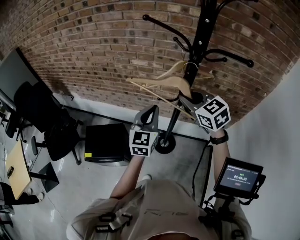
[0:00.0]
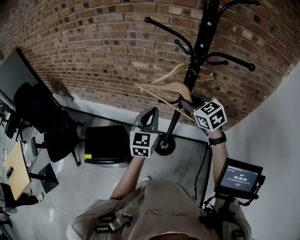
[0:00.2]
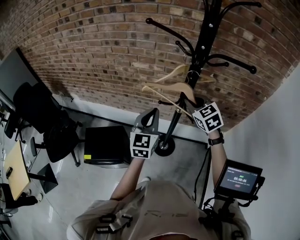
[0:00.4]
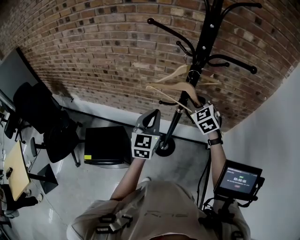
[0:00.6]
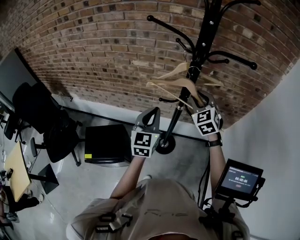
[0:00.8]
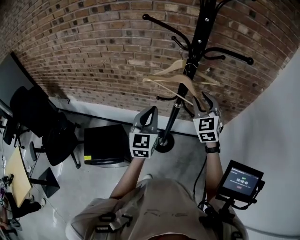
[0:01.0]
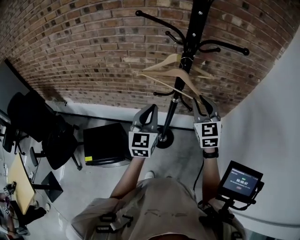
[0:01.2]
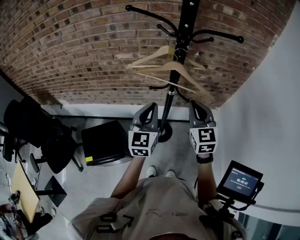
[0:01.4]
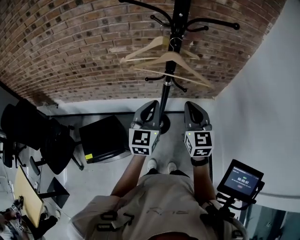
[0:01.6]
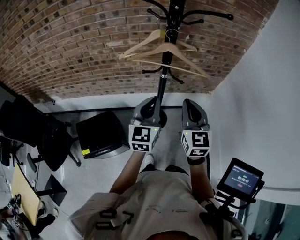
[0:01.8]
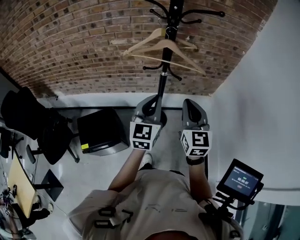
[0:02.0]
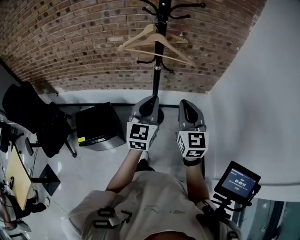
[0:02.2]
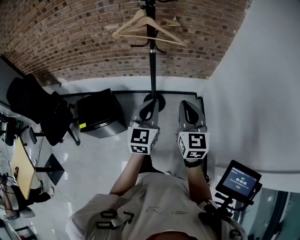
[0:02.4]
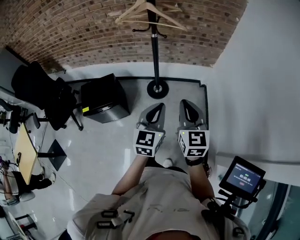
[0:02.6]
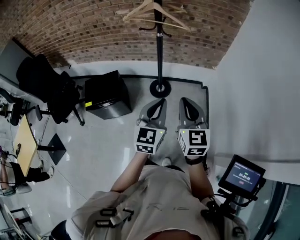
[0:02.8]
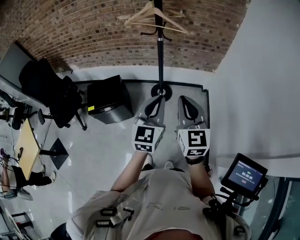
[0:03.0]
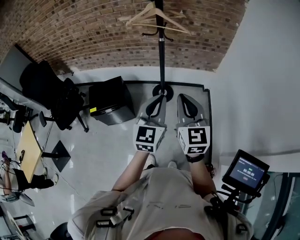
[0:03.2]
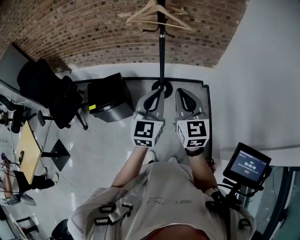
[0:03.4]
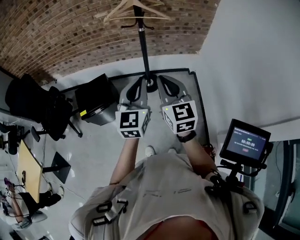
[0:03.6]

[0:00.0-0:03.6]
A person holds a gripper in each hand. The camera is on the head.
0:00.0 to 0:01.8: The right gripper shifts by roughly 20 cm, changes its angle by some 50 degrees, and opens, then closes again, while the left gripper moves about 10 cm.
0:01.8 to 0:03.6: Both grippers travel together backward, roughly 30 cm.

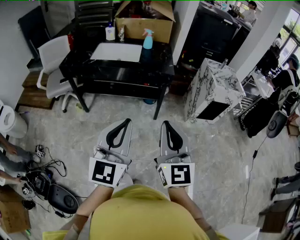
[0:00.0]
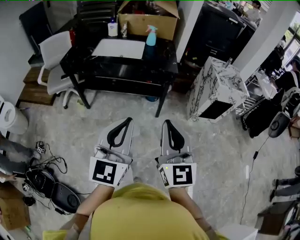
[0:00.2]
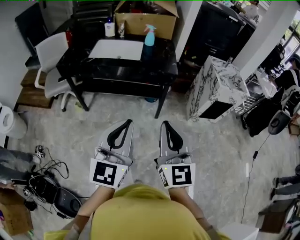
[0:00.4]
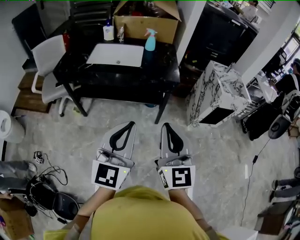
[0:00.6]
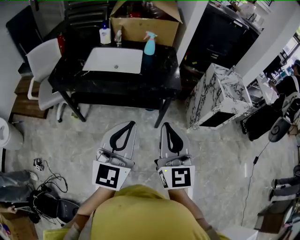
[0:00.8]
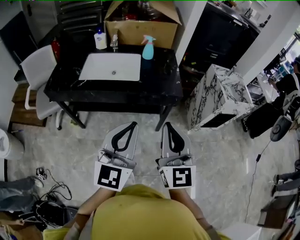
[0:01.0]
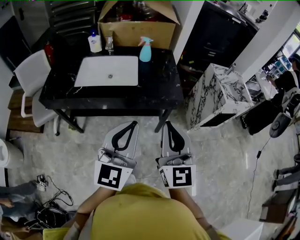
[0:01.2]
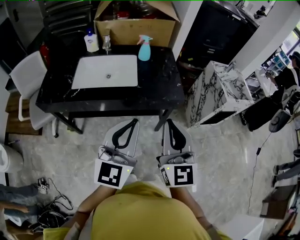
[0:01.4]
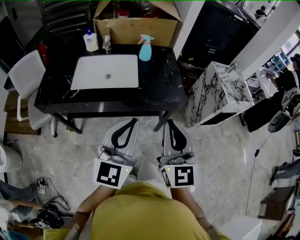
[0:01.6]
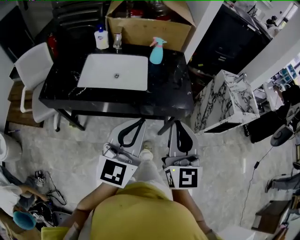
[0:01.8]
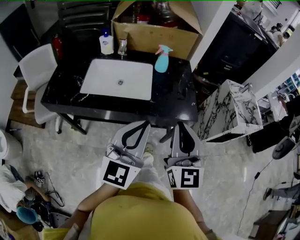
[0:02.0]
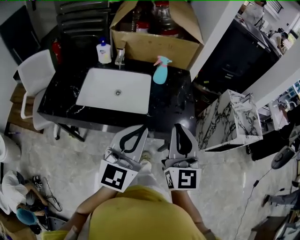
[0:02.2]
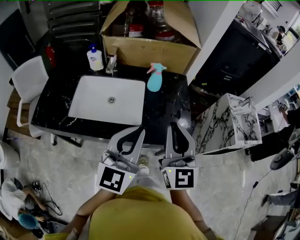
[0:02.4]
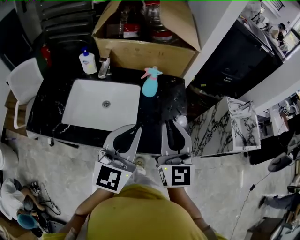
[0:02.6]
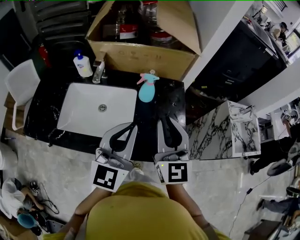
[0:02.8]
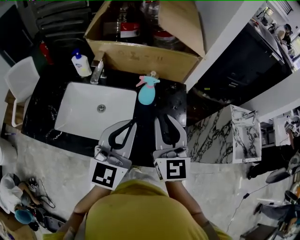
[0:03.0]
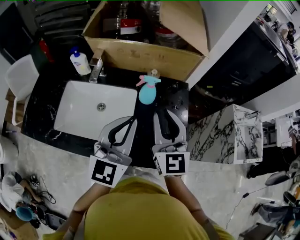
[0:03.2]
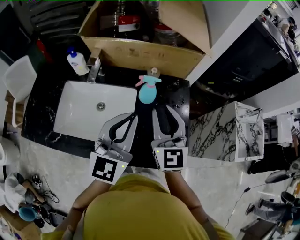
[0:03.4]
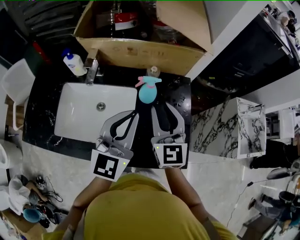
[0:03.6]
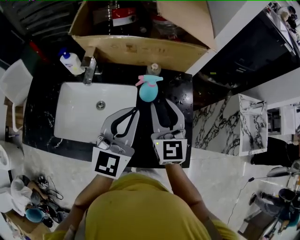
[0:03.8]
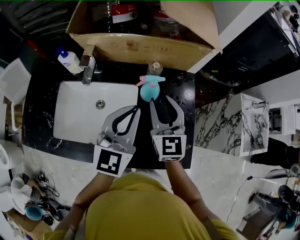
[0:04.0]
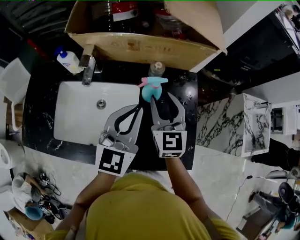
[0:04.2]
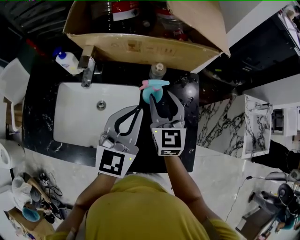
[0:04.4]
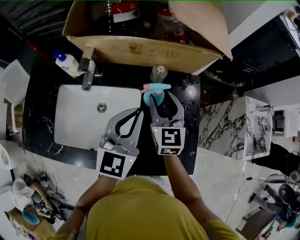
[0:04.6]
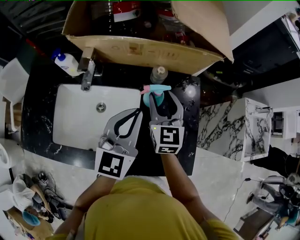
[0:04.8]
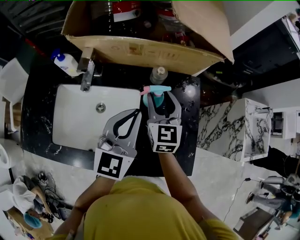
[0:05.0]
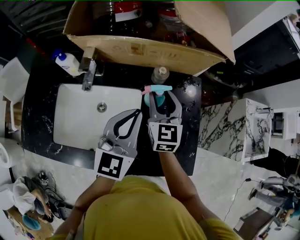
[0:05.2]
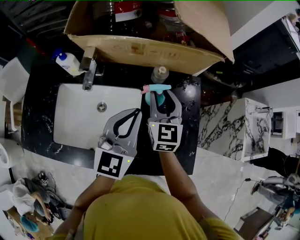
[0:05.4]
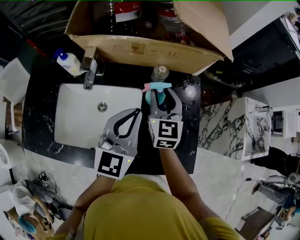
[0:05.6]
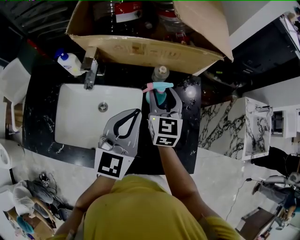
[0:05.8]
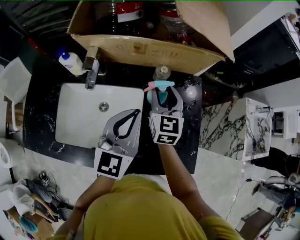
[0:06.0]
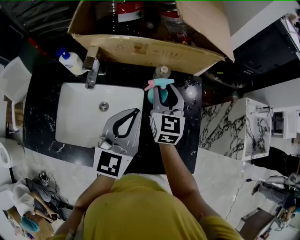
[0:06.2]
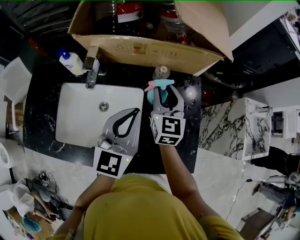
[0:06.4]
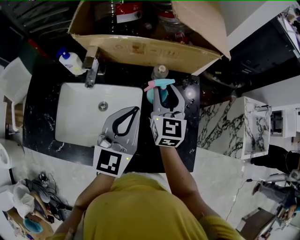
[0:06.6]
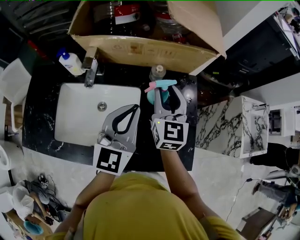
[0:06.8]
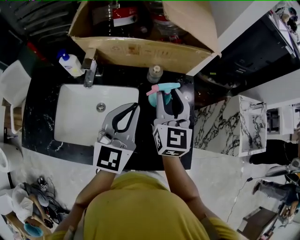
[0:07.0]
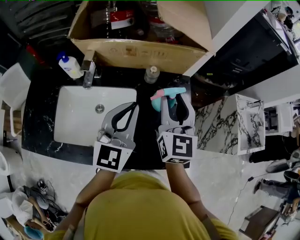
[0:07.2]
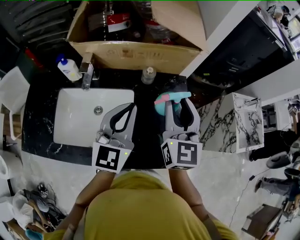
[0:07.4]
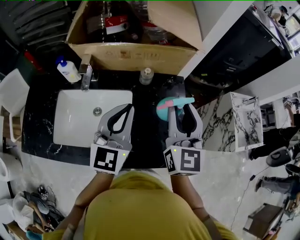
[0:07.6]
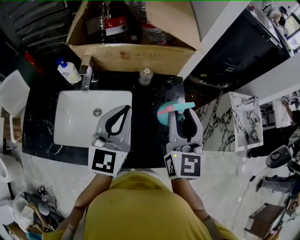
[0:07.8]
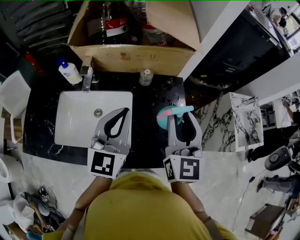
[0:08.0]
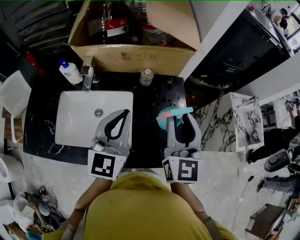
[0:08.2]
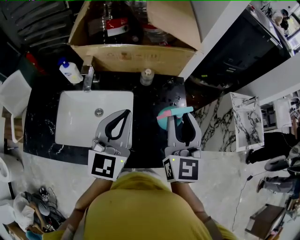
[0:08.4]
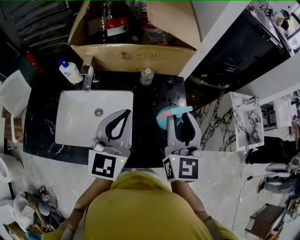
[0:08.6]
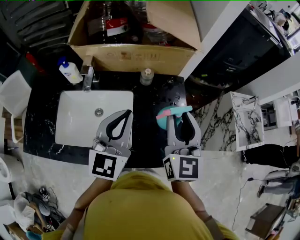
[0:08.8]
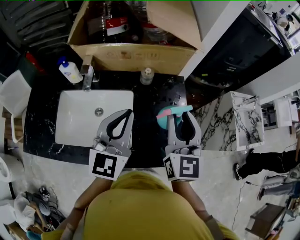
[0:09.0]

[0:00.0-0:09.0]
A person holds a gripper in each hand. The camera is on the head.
0:00.0 to 0:01.6: Both grippers travel together forward, approximately 35 cm.
0:01.6 to 0:03.0: The grippers both shift forward by approximately 35 cm.
0:03.0 to 0:04.4: The grippers both shift forward and downward by some 15 cm. The right gripper opens.
0:04.4 to 0:06.0: The grippers stay close to where they were, moving slightly.
0:06.0 to 0:07.6: The right gripper goes roughly 20 cm upward, backward and to the right. Meanwhile the left gripper moves upward, some 5 cm.
0:07.6 to 0:09.0: There are only small adjustments of the grippers.

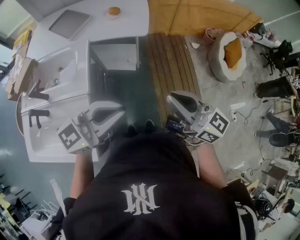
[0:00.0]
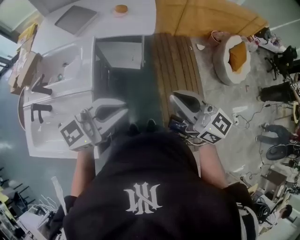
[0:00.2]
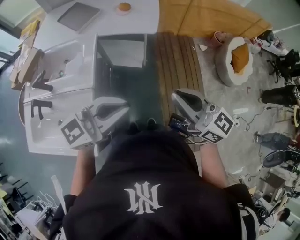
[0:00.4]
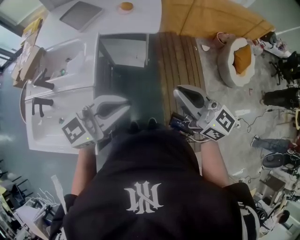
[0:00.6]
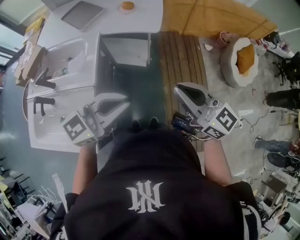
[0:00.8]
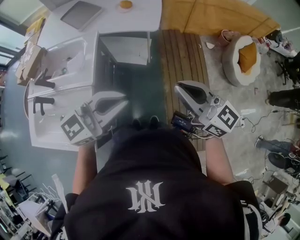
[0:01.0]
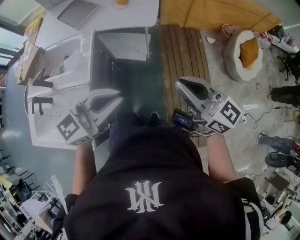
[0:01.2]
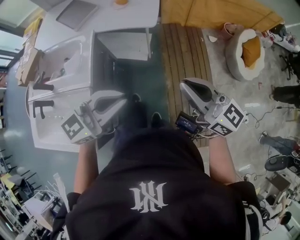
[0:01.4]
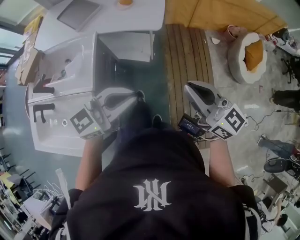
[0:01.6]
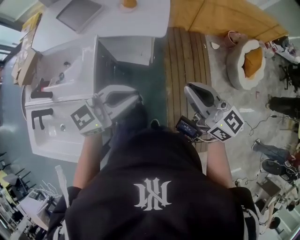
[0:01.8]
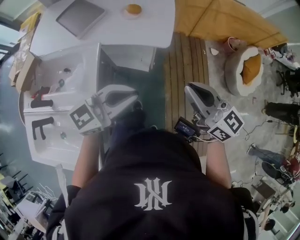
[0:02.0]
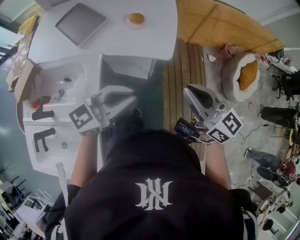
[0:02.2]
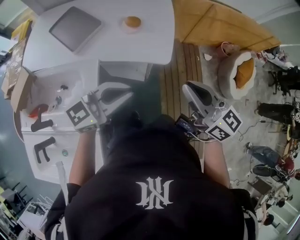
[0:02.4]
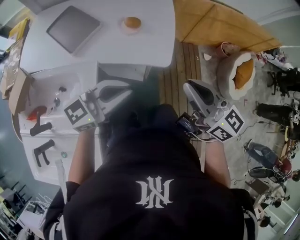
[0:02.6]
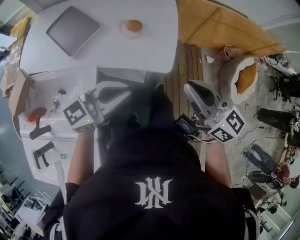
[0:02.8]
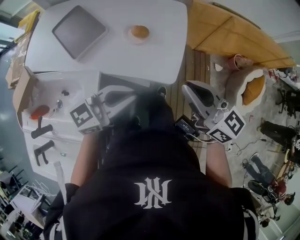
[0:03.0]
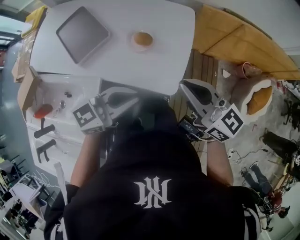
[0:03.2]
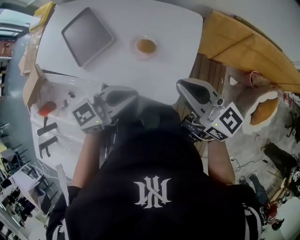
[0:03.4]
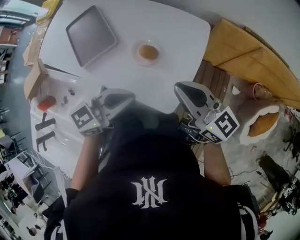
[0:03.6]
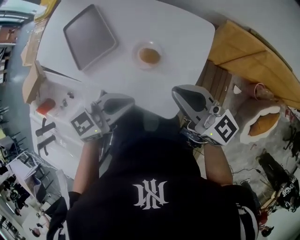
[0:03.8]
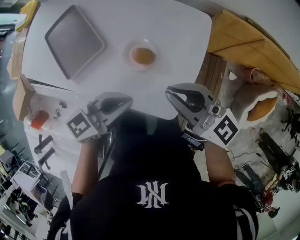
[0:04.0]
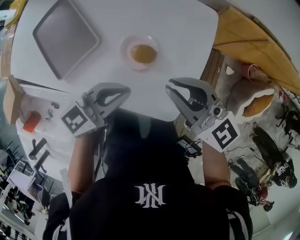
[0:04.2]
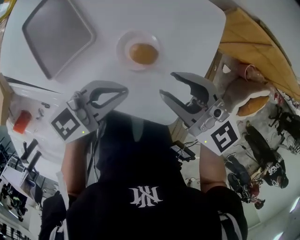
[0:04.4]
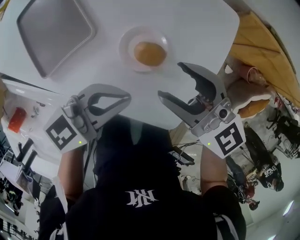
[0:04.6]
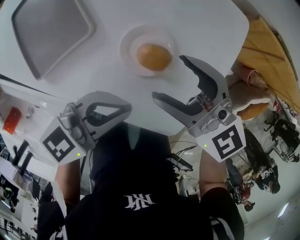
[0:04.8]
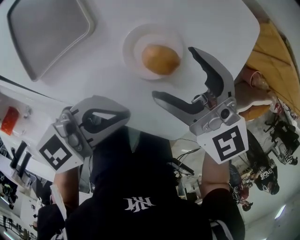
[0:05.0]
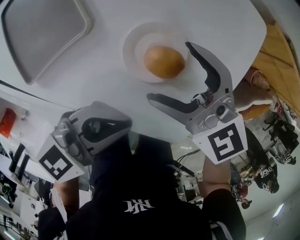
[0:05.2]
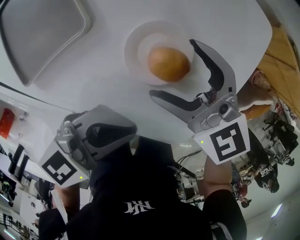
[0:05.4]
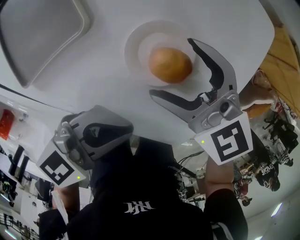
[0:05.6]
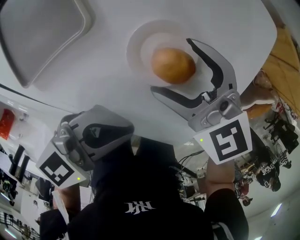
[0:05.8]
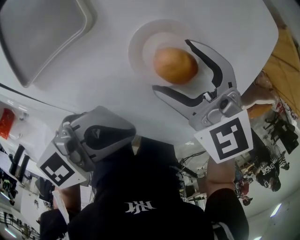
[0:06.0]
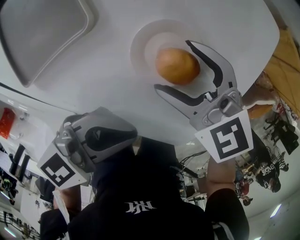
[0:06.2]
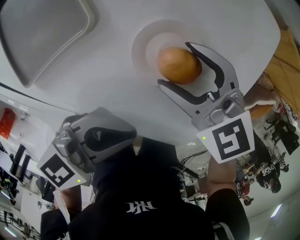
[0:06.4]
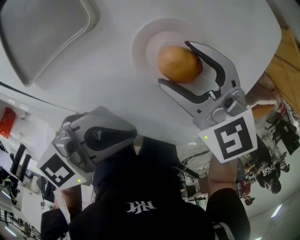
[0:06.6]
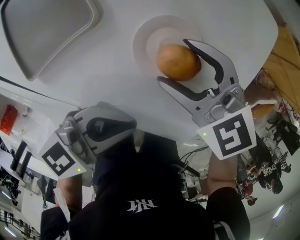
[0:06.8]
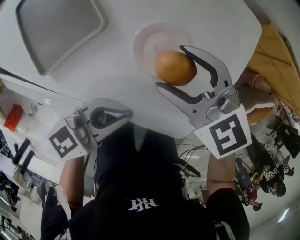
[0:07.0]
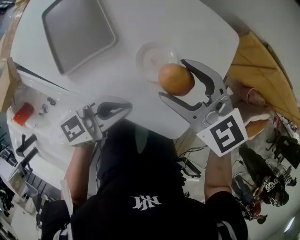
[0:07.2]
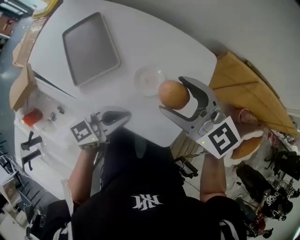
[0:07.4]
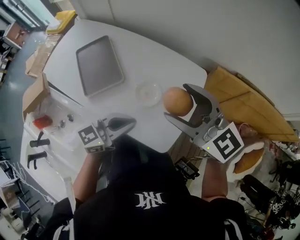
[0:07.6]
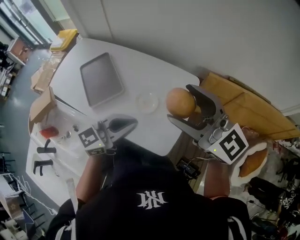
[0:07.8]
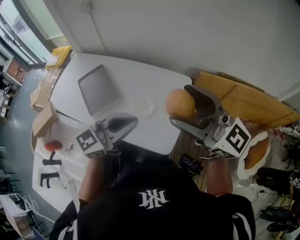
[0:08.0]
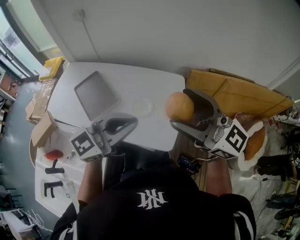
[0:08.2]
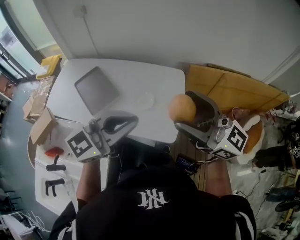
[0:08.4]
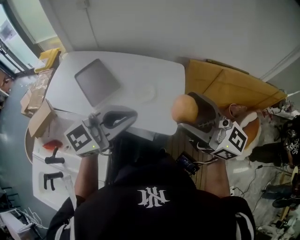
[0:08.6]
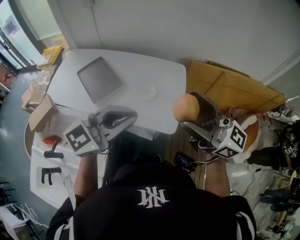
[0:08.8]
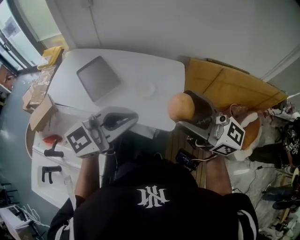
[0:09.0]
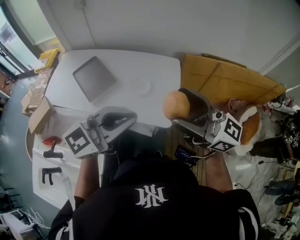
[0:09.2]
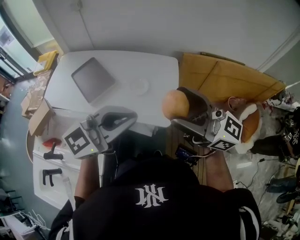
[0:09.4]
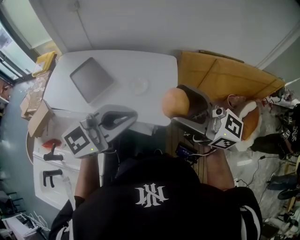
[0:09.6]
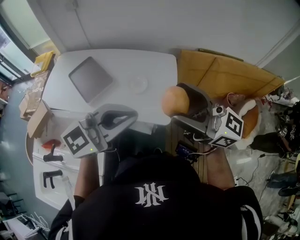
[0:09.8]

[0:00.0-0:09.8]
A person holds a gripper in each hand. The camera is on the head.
0:00.0 to 0:01.4: The left gripper moves forward, approximately 5 cm, while the right gripper moves forward and to the right, roughly 10 cm.
0:01.4 to 0:02.8: The grippers both shift forward and to the left by some 40 cm.
0:02.8 to 0:04.2: Both grippers move forward and downward, about 35 cm. The right gripper turns by some 20 degrees; the left gripper turns by some 20 degrees.
0:04.2 to 0:05.6: The left gripper goes roughly 10 cm downward; the right gripper heads downward, covering some 20 cm, changes its angle by about 30 degrees, and opens.
0:05.6 to 0:07.0: The right gripper goes about 5 cm upward.
0:07.0 to 0:08.4: Both grippers move upward, roughly 40 cm. The left gripper rotates about 30 degrees. Meanwhile the right gripper tips its fingers upward by about 50 degrees.
0:08.4 to 0:09.8: The left gripper shifts by about 10 cm, while the right gripper ends up about 10 cm from where it was.

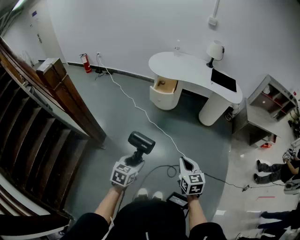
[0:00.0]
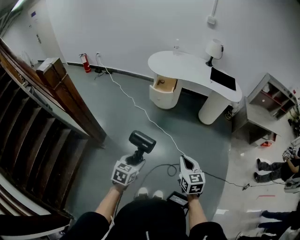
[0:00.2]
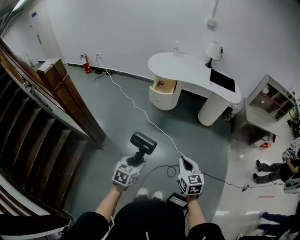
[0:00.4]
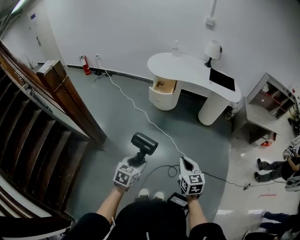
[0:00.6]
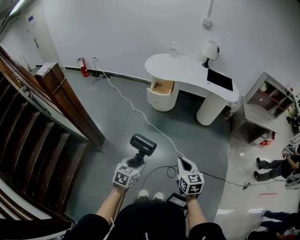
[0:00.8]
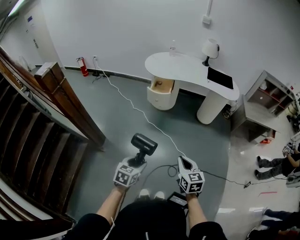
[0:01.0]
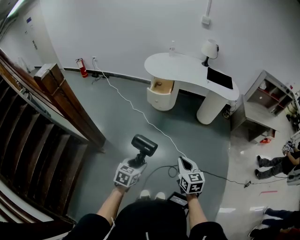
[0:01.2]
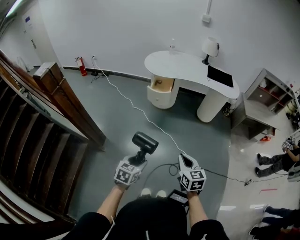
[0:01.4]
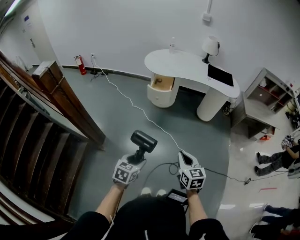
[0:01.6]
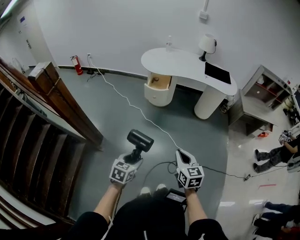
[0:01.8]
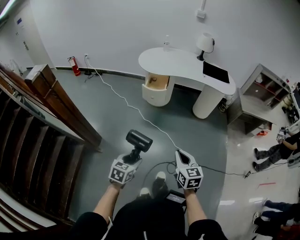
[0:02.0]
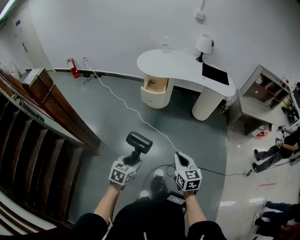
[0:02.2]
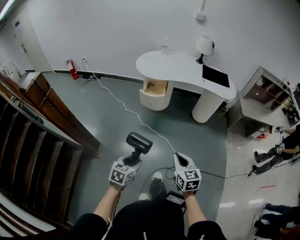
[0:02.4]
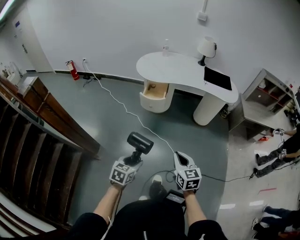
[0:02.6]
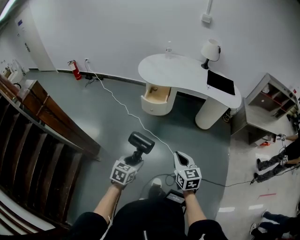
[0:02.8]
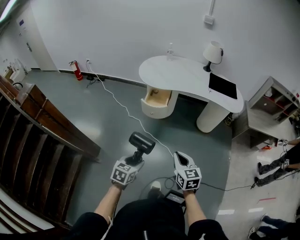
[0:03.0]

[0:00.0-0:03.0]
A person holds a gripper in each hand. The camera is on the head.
0:00.0 to 0:01.6: The grippers move only a little.
0:01.6 to 0:03.0: The grippers both shift forward by some 20 cm.
